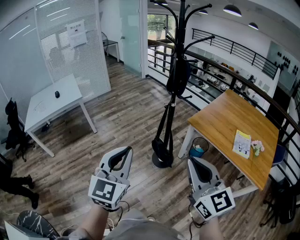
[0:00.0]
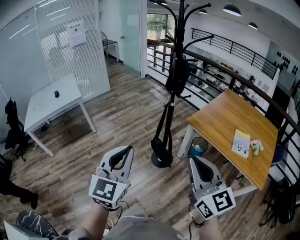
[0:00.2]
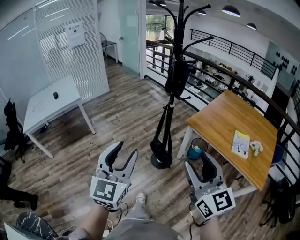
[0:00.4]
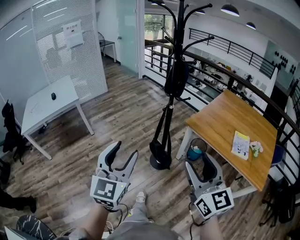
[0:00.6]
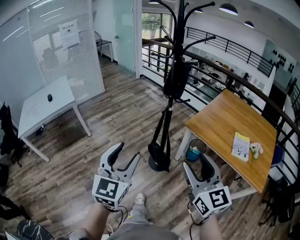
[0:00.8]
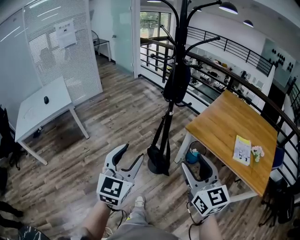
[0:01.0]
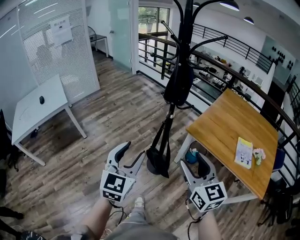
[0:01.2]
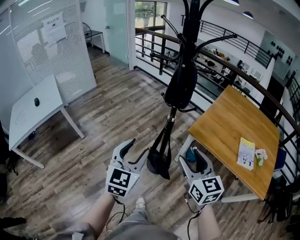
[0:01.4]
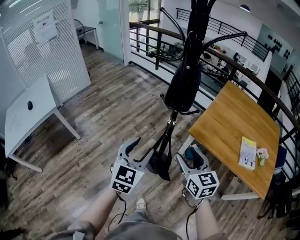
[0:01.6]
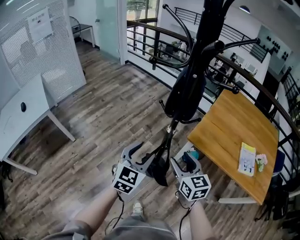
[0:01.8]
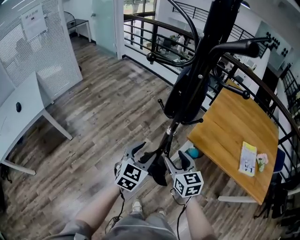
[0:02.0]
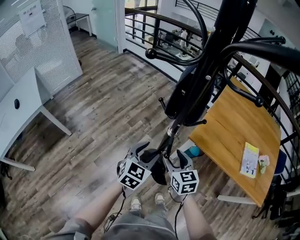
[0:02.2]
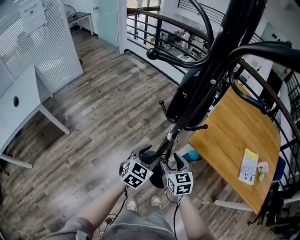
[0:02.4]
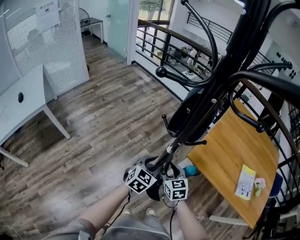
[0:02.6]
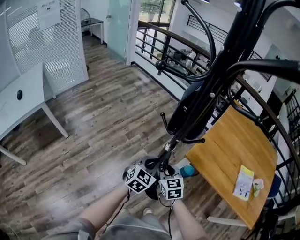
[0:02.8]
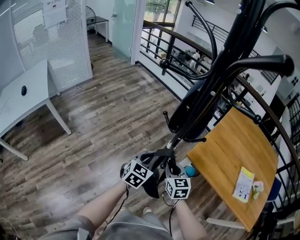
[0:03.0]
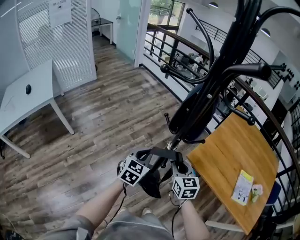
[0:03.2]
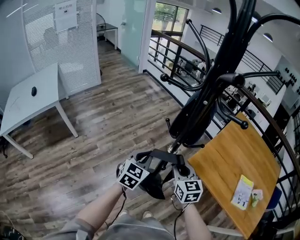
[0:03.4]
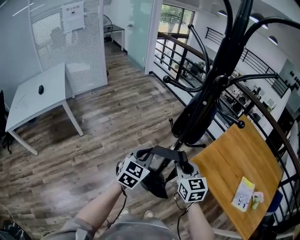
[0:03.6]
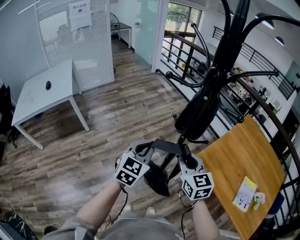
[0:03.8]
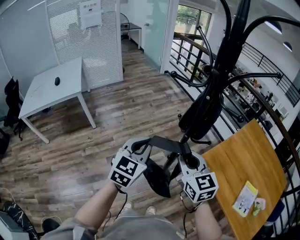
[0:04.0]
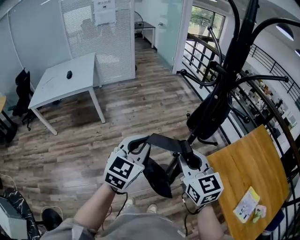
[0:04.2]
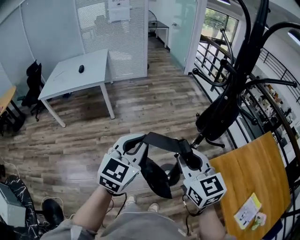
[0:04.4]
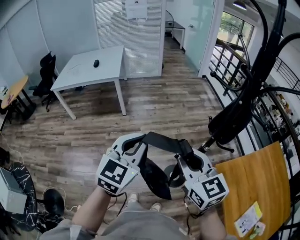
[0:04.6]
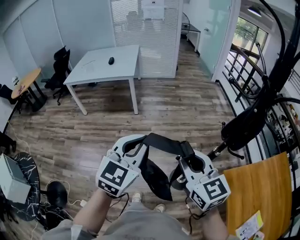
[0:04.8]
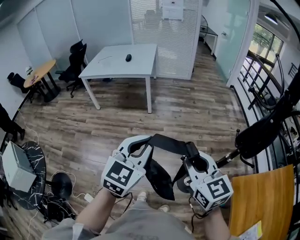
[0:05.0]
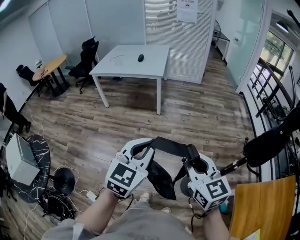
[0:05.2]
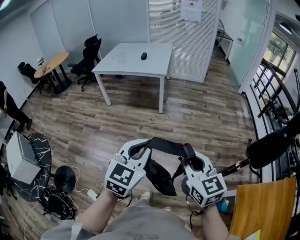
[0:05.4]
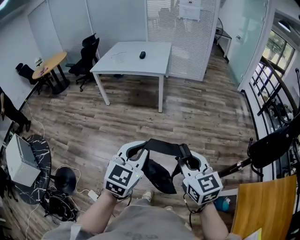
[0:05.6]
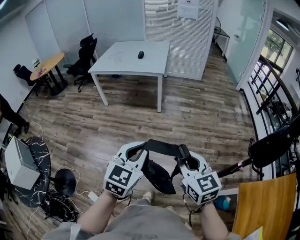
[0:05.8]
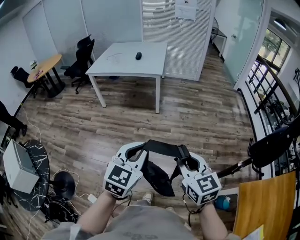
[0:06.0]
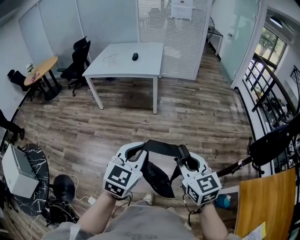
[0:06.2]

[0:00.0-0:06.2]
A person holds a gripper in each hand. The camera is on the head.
0:00.0 to 0:01.6: The left gripper heads forward, covering about 35 cm, and opens. The right gripper is displaced forward and downward by roughly 35 cm, turns by approximately 20 degrees, and opens up.
0:01.6 to 0:03.2: Both grippers move forward and downward, roughly 20 cm. The right gripper closes up. The left gripper closes.
0:03.2 to 0:04.6: Both grippers move upward, approximately 25 cm. The right gripper changes its angle by approximately 50 degrees. The left gripper changes its angle by roughly 30 degrees.
0:04.6 to 0:06.2: The right gripper moves to the left, forward and downward, roughly 20 cm, while the left gripper heads to the left, covering some 20 cm.

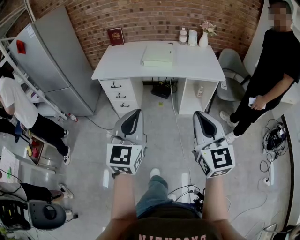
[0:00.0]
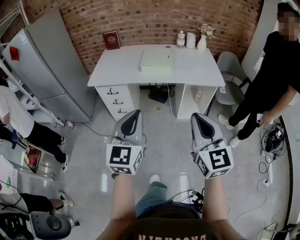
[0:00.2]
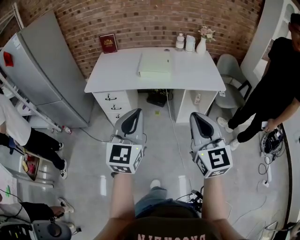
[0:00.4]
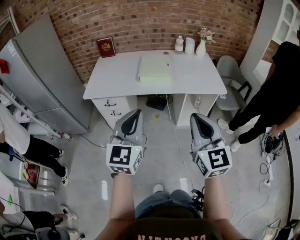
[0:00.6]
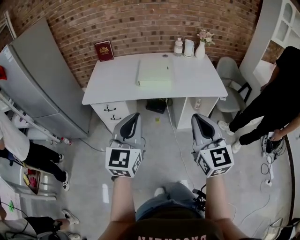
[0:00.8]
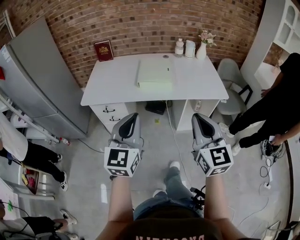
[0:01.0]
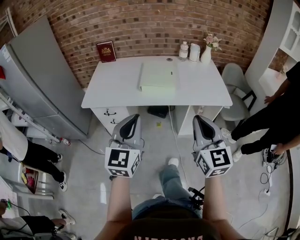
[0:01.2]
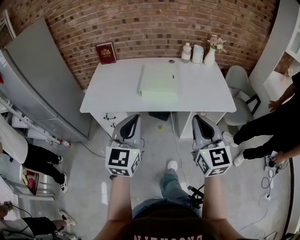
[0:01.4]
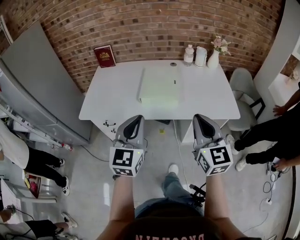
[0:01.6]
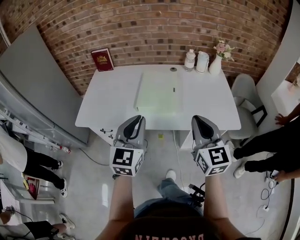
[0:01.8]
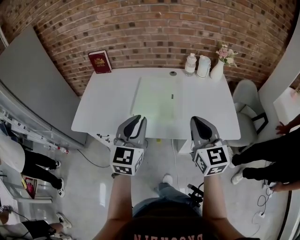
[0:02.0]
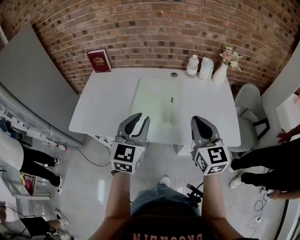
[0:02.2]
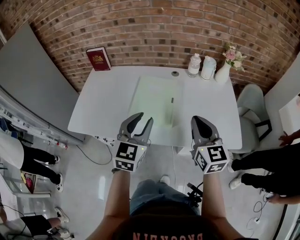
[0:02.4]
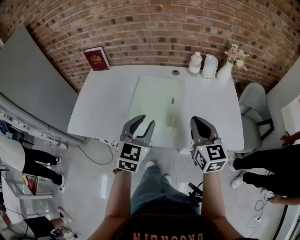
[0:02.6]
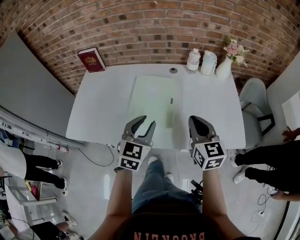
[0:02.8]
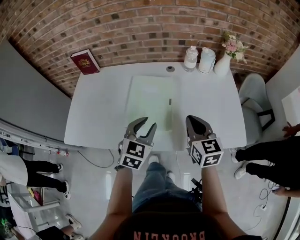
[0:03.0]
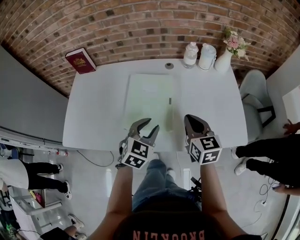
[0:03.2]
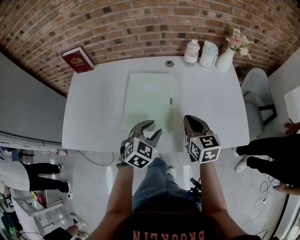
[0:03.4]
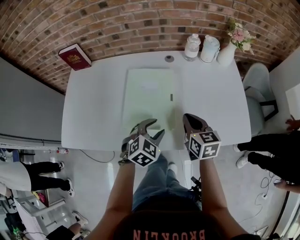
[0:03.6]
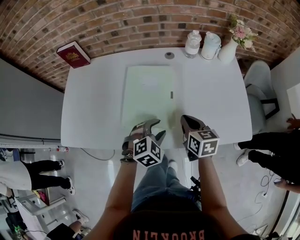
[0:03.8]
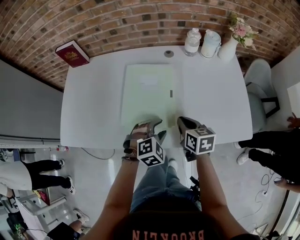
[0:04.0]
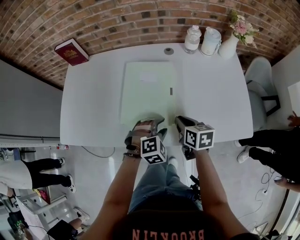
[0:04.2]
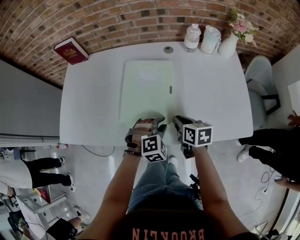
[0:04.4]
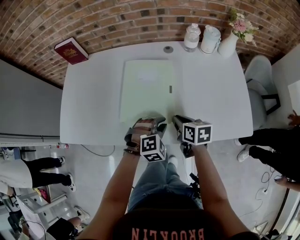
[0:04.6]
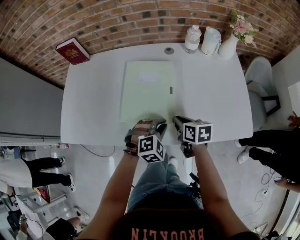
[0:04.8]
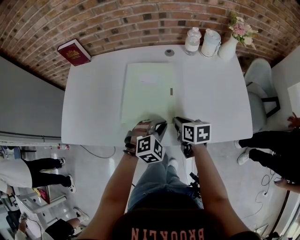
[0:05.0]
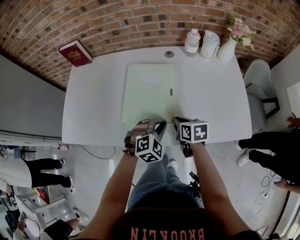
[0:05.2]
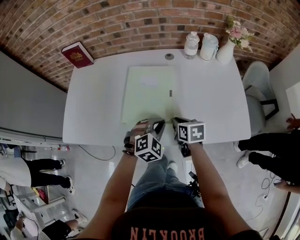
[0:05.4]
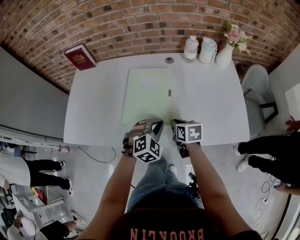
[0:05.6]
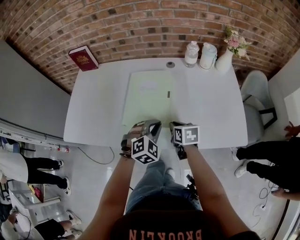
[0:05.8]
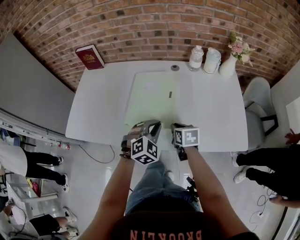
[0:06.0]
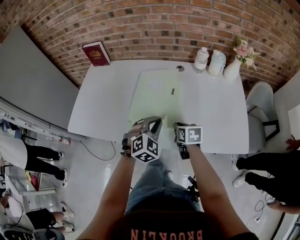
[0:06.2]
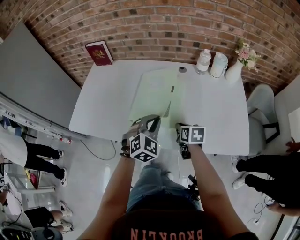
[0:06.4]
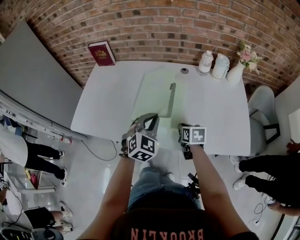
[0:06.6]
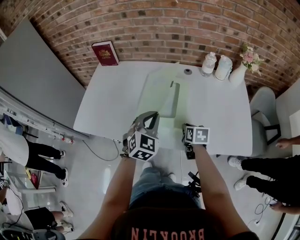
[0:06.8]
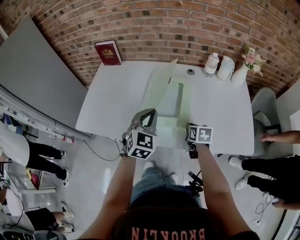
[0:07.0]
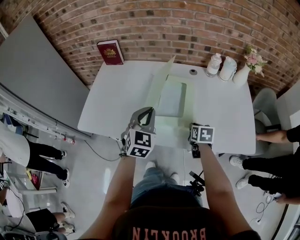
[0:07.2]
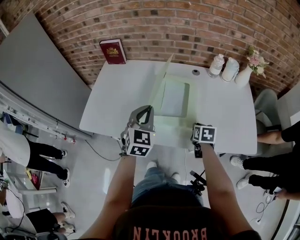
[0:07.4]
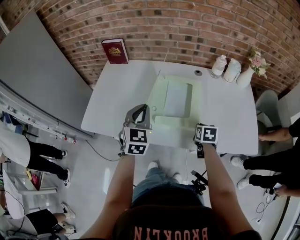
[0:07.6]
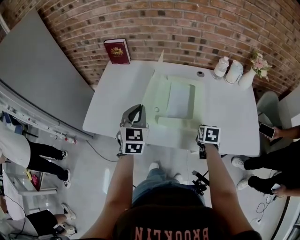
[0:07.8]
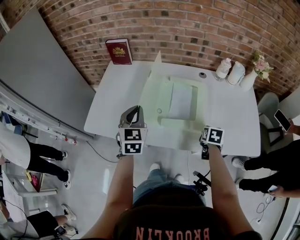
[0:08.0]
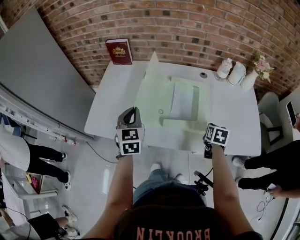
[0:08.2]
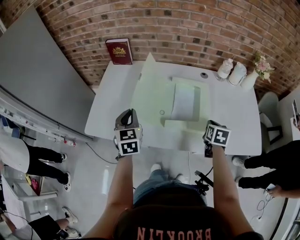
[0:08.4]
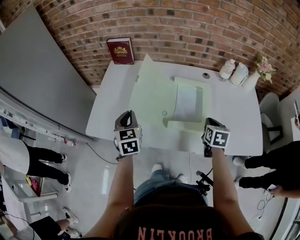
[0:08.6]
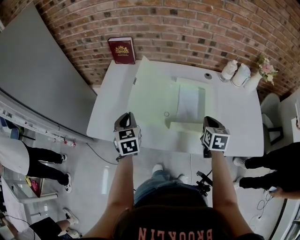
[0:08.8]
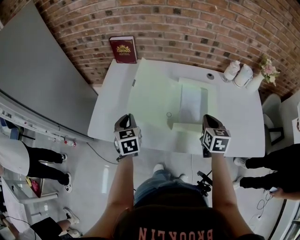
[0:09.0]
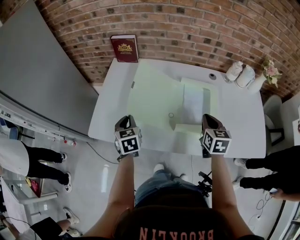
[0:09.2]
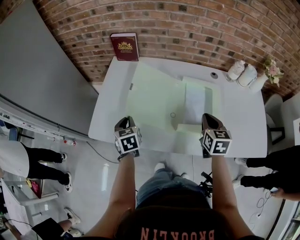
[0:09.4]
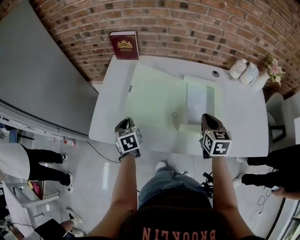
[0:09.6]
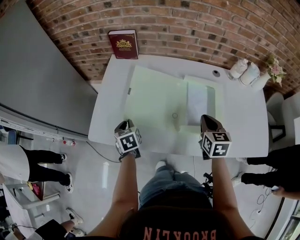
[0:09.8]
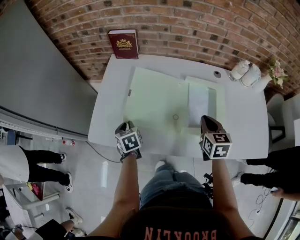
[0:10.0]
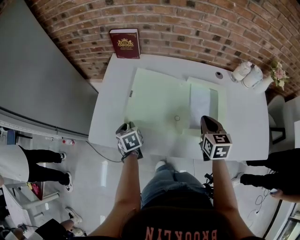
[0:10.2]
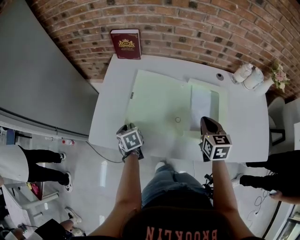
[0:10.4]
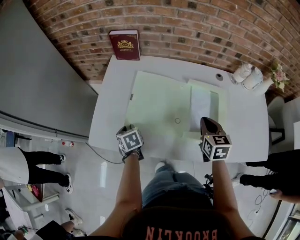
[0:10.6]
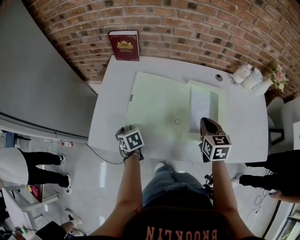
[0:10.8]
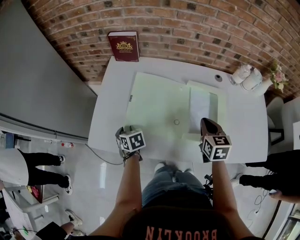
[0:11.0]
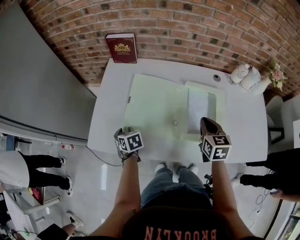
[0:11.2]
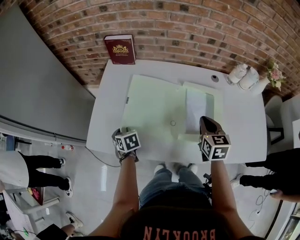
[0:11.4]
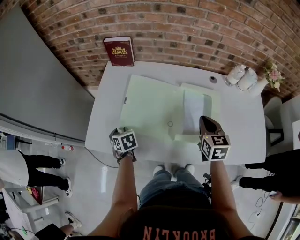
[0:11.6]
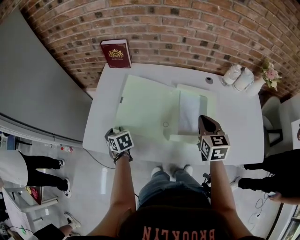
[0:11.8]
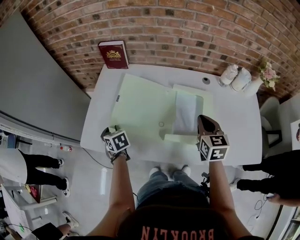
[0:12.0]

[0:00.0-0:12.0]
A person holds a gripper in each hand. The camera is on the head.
0:00.0 to 0:01.6: Both grippers move forward, some 35 cm.
0:01.6 to 0:03.0: Both grippers move forward and downward, approximately 30 cm. The left gripper swivels roughly 30 degrees, and opens up.
0:03.0 to 0:04.4: Both grippers move downward, roughly 15 cm. The right gripper turns by some 40 degrees. The left gripper twists some 40 degrees clockwise, seen from behind.
0:04.4 to 0:06.0: The left gripper moves upward, approximately 10 cm, turns by approximately 20 degrees, and closes up.
0:06.0 to 0:07.6: The left gripper is displaced to the left and upward by roughly 20 cm, and changes its angle by some 40 degrees.
0:07.6 to 0:09.0: The right gripper travels upward, to the left and forward by about 15 cm, and changes its angle by approximately 20 degrees. Meanwhile the left gripper travels to the left and downward by about 20 cm, and turns by some 30 degrees.
0:09.0 to 0:10.4: The right gripper shifts some 5 cm to the left. The left gripper moves downward and to the left, some 15 cm, and turns by roughly 30 degrees.
0:10.4 to 0:12.0: The right gripper heads to the right, covering about 5 cm.

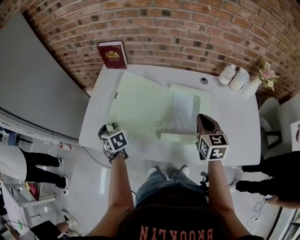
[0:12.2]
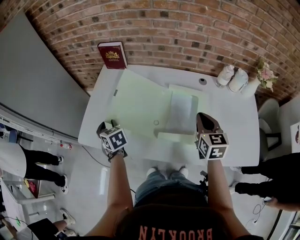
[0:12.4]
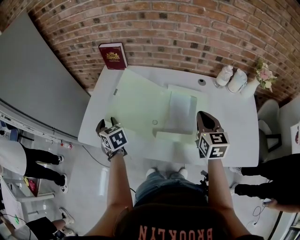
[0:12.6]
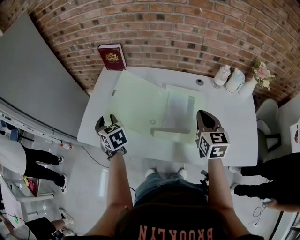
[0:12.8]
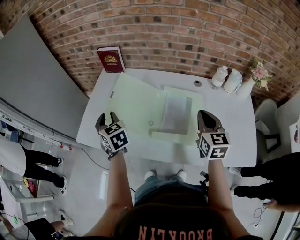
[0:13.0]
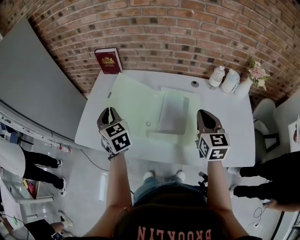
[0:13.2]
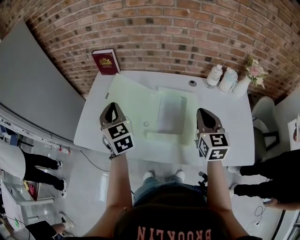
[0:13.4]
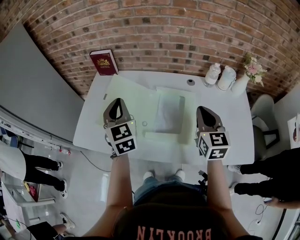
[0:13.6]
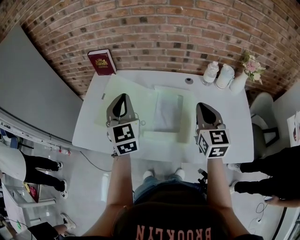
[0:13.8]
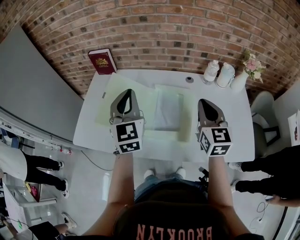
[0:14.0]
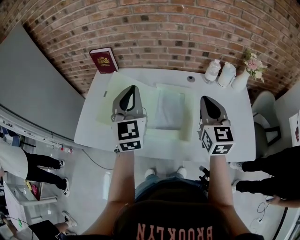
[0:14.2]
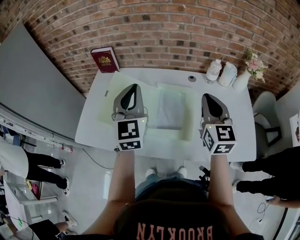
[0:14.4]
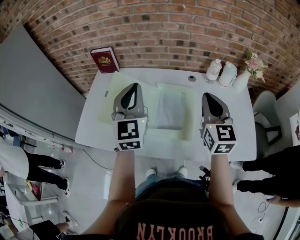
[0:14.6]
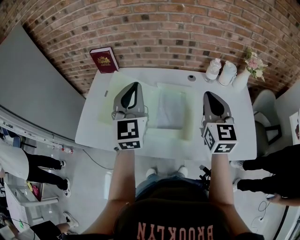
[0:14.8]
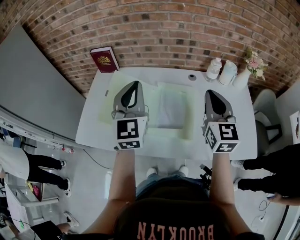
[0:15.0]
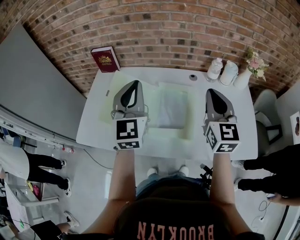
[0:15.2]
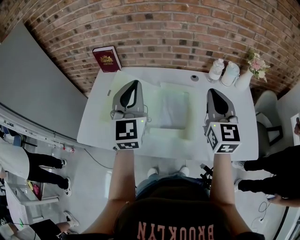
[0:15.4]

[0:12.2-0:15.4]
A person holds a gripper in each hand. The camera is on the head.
0:12.2 to 0:13.8: The right gripper goes some 10 cm upward and to the right, while the left gripper shifts some 30 cm upward and to the right, angles its fingers upward, by approximately 40 degrees, and closes its fingers.
0:13.8 to 0:15.4: Both grippers travel together upward, roughly 5 cm.

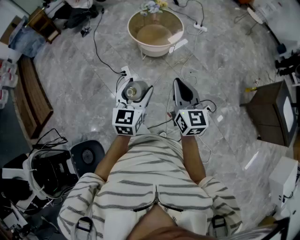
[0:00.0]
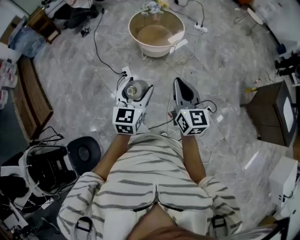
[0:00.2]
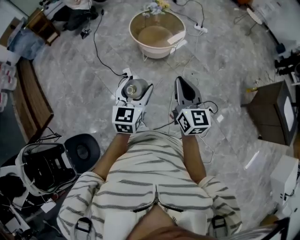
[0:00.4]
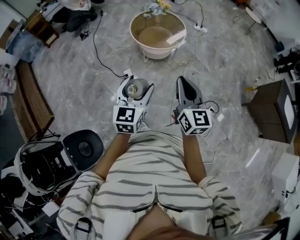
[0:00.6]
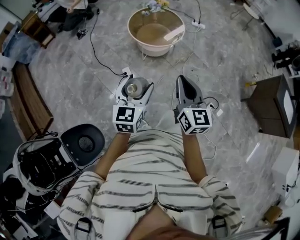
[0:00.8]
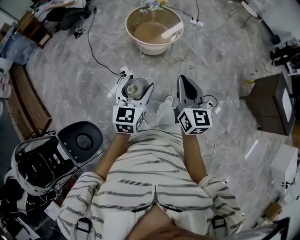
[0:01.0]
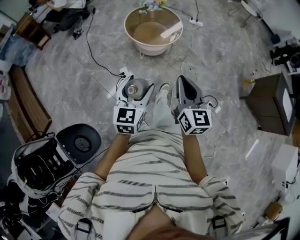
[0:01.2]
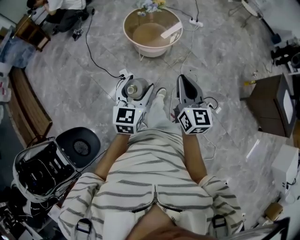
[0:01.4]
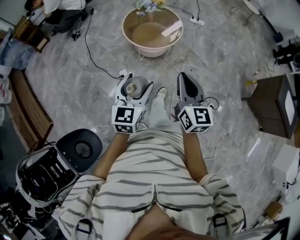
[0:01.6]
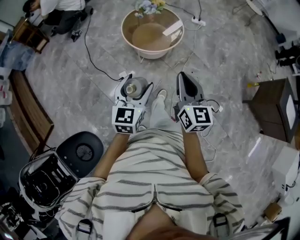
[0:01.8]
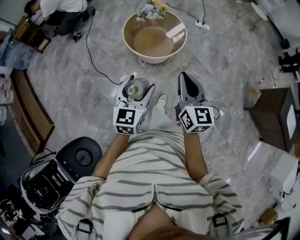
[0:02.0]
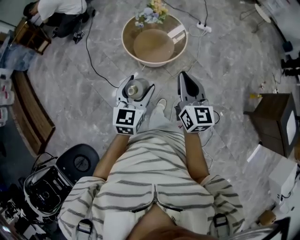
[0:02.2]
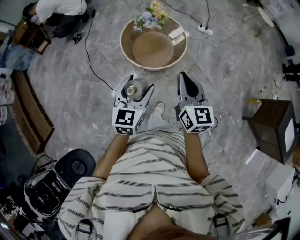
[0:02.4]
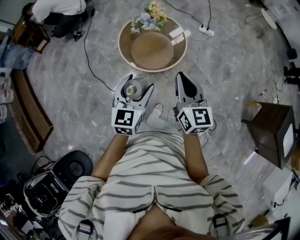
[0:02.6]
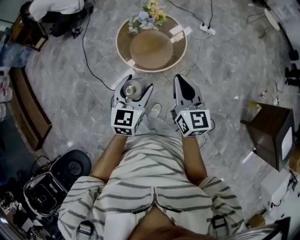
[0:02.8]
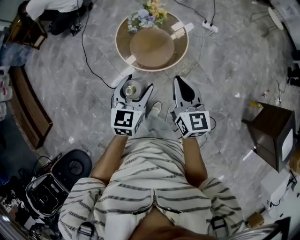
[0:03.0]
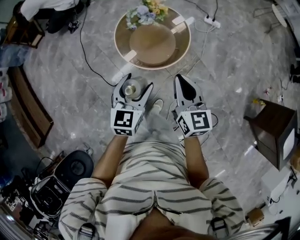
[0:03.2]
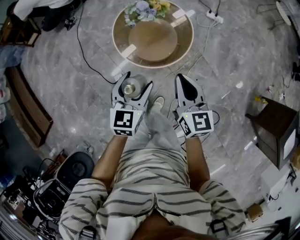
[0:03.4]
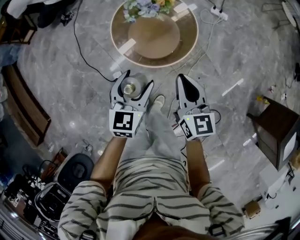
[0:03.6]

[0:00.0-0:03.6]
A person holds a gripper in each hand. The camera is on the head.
0:00.0 to 0:01.8: Both grippers move forward, roughly 15 cm.
0:01.8 to 0:03.6: Both grippers travel together forward and downward, approximately 35 cm.
